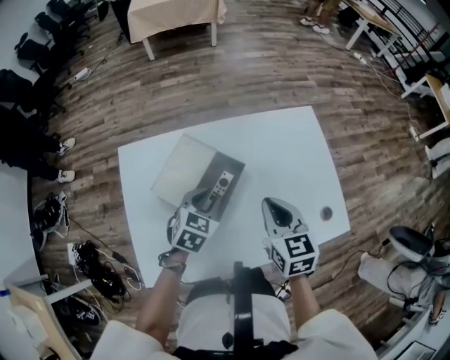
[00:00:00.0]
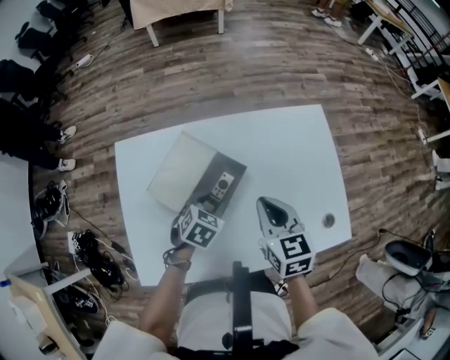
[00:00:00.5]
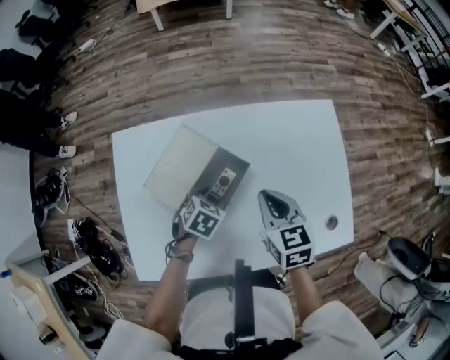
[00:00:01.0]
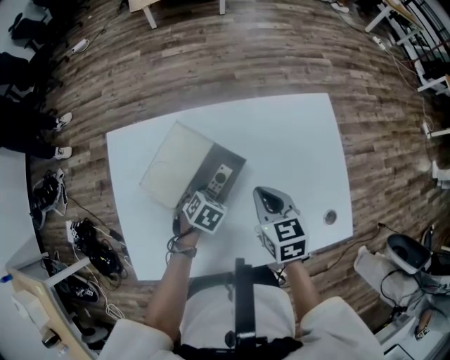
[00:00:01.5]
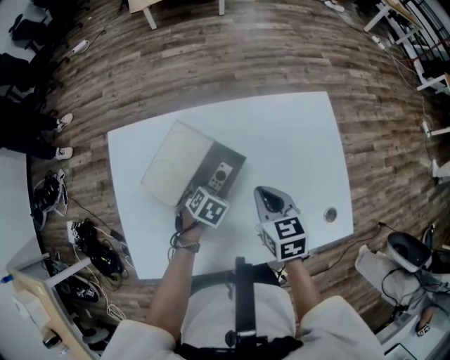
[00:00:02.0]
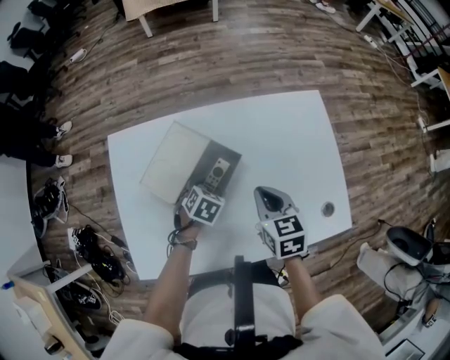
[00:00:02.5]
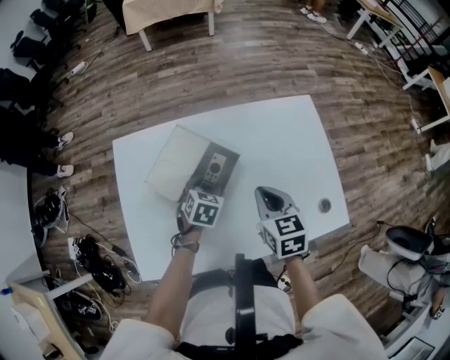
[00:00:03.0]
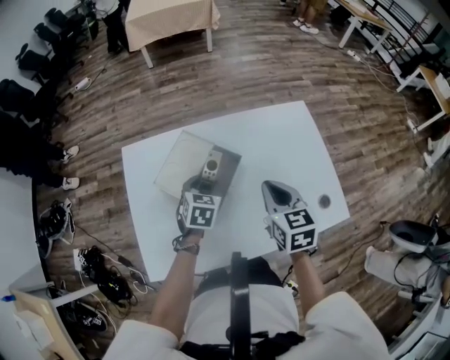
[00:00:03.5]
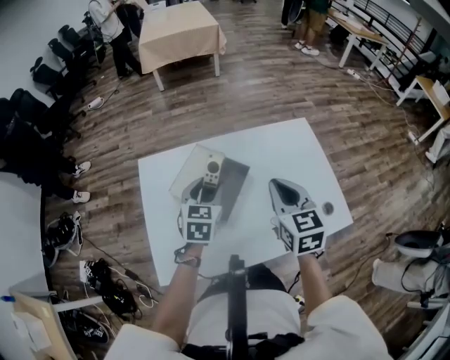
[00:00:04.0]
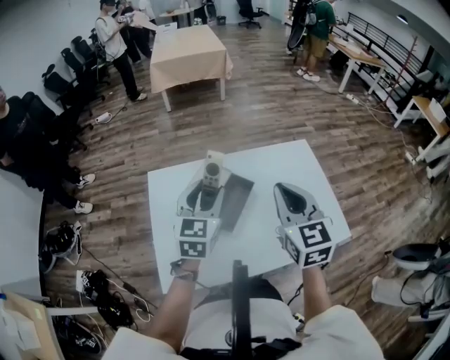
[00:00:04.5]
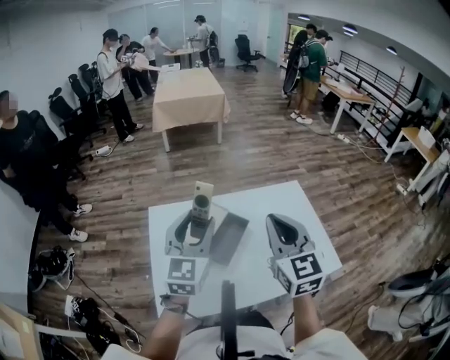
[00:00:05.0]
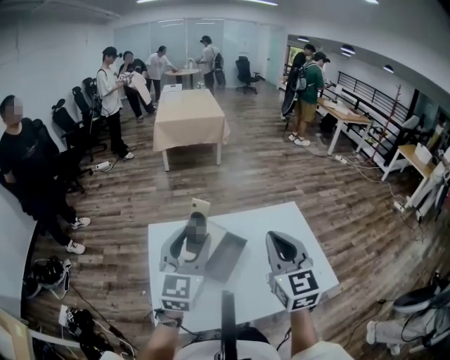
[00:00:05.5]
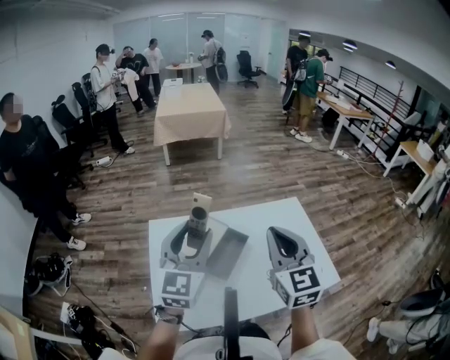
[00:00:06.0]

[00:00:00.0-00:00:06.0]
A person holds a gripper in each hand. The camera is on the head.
00:00:00.0 to 00:00:02.0: The left gripper heads downward, covering approximately 15 cm, swivels roughly 30 degrees, and opens its fingers. The right gripper is displaced downward and forward by roughly 10 cm.
00:00:02.0 to 00:00:04.0: The grippers both shift upward by roughly 20 cm. The left gripper points its fingers some 40 degrees further upward. The right gripper swivels some 20 degrees.
00:00:04.0 to 00:00:06.0: The left gripper heads upward, covering about 25 cm, and points its fingers approximately 30 degrees further upward, while the right gripper travels upward by about 15 cm, and turns by roughly 20 degrees.

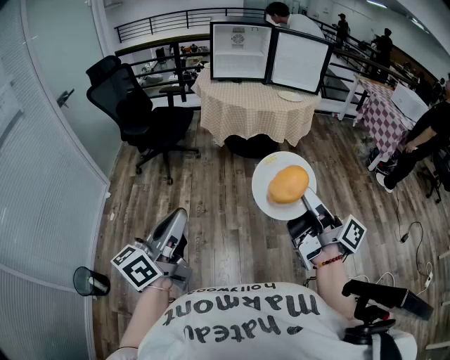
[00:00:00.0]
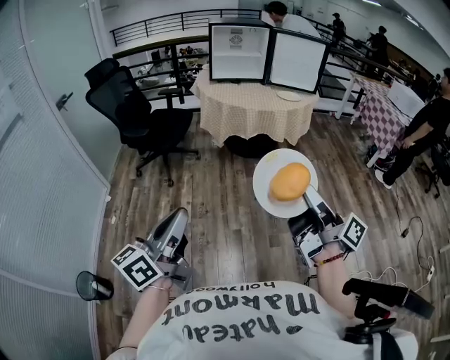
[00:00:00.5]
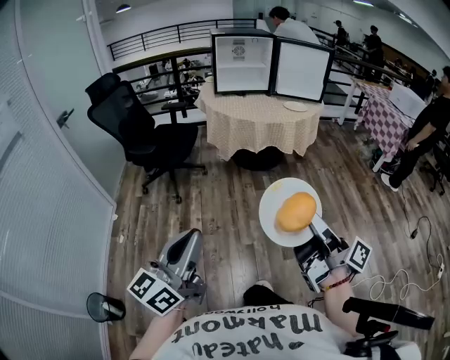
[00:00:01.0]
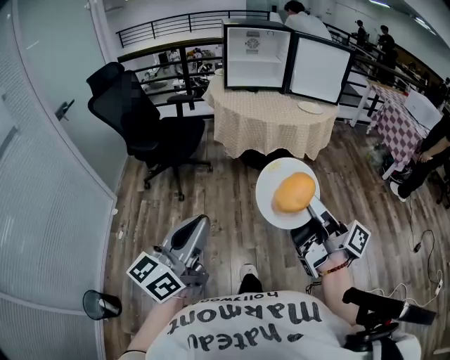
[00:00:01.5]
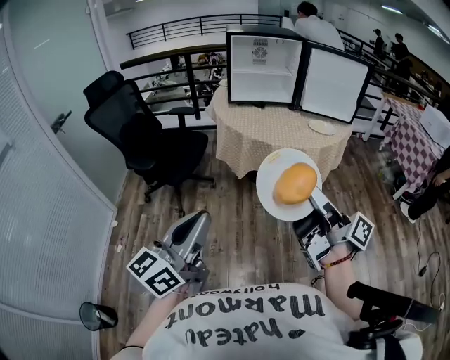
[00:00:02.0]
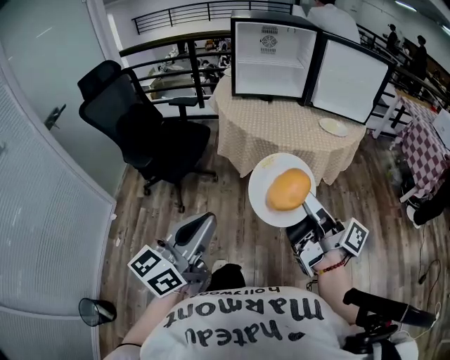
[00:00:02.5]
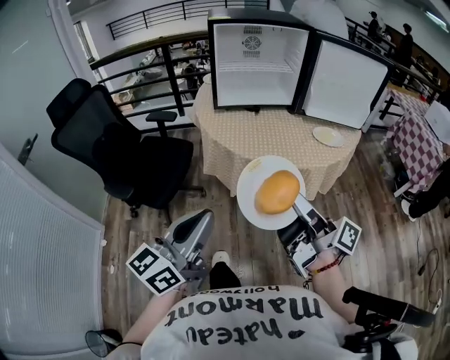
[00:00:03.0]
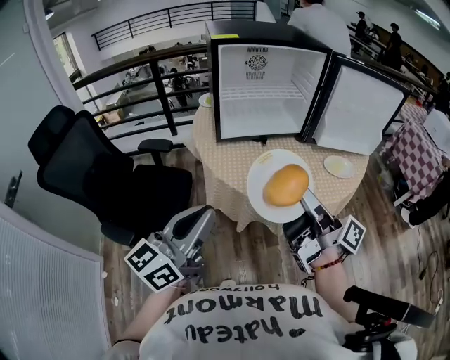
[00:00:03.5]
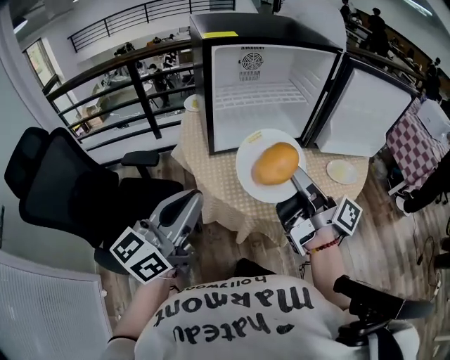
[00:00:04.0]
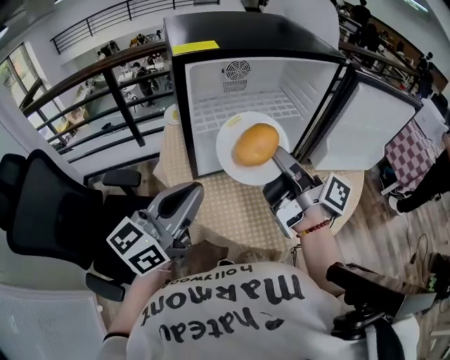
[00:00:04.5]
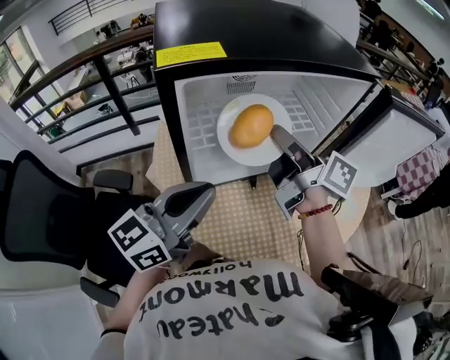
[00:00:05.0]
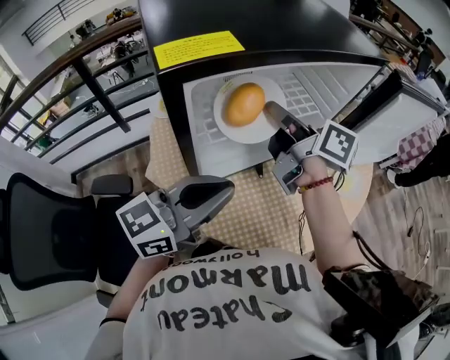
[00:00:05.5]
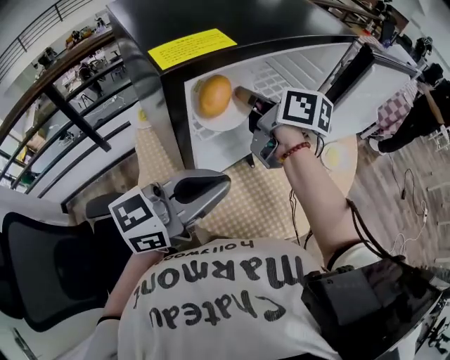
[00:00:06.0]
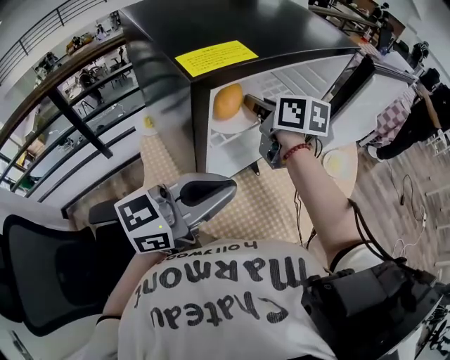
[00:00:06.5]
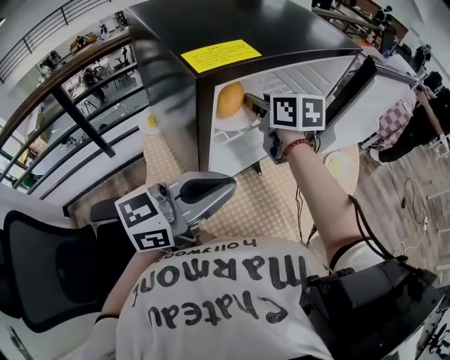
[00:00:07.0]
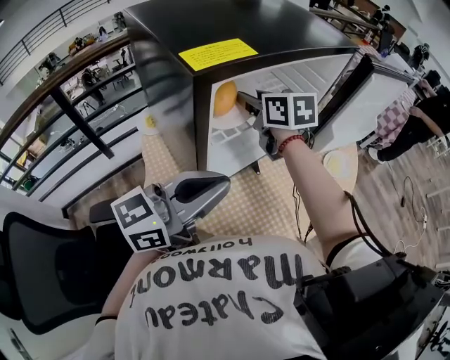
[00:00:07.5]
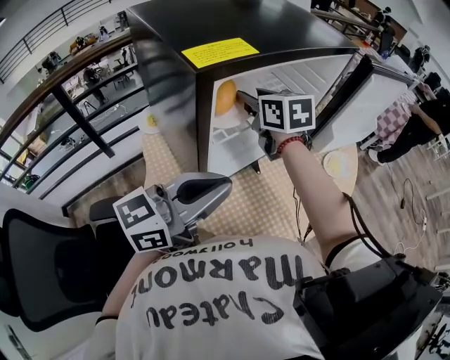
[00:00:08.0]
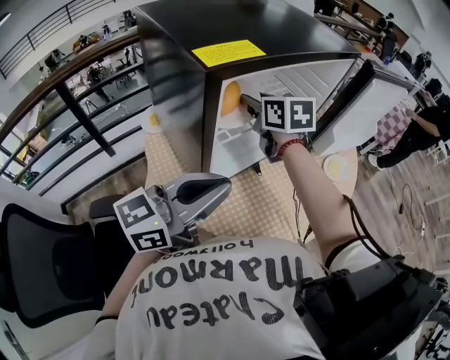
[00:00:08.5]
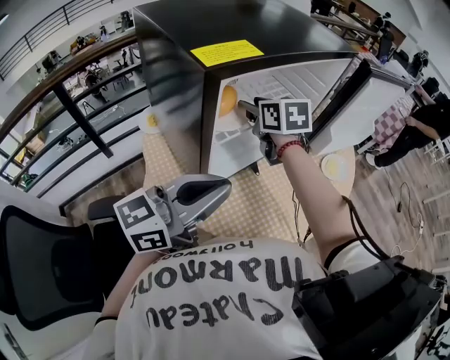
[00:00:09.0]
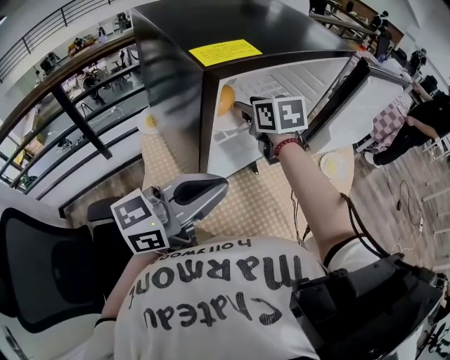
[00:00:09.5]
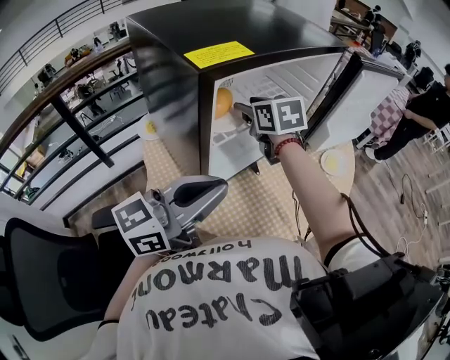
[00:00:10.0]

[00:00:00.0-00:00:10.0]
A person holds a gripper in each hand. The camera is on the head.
00:00:00.0 to 00:00:02.0: Both grippers move forward, approximately 30 cm.
00:00:02.0 to 00:00:04.0: Both grippers are carried forward, some 50 cm.
00:00:04.0 to 00:00:06.0: The right gripper ends up approximately 35 cm from where it was, and angles its fingers downward, by about 30 degrees. Meanwhile the left gripper moves about 25 cm, and swivels some 40 degrees.
00:00:06.0 to 00:00:08.0: The right gripper swivels roughly 40 degrees.
00:00:08.0 to 00:00:10.0: The right gripper opens up.

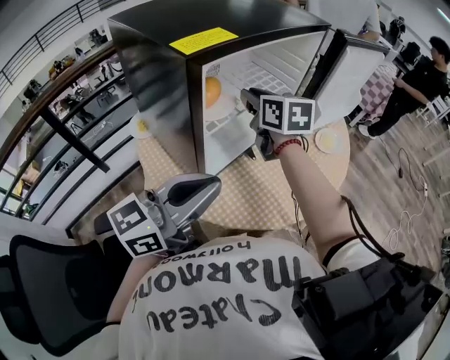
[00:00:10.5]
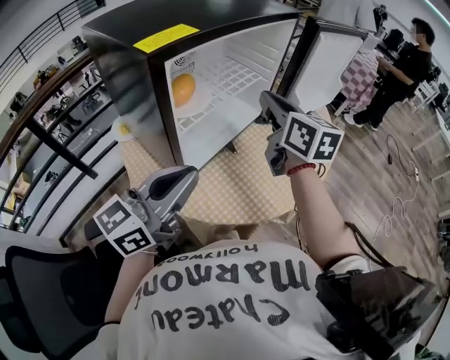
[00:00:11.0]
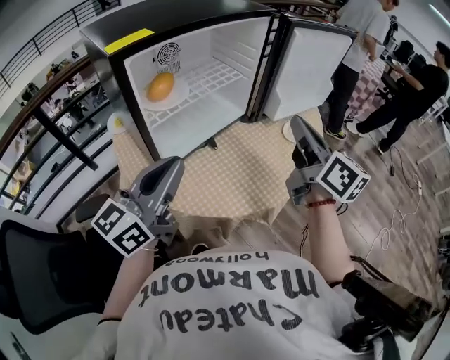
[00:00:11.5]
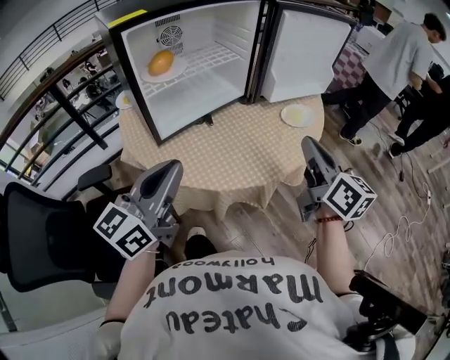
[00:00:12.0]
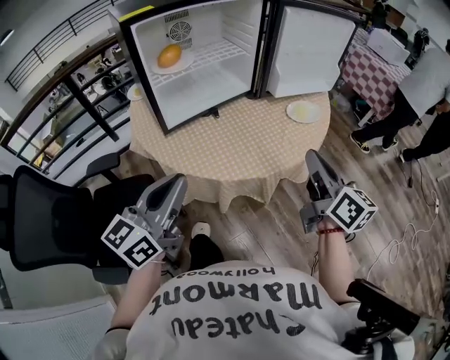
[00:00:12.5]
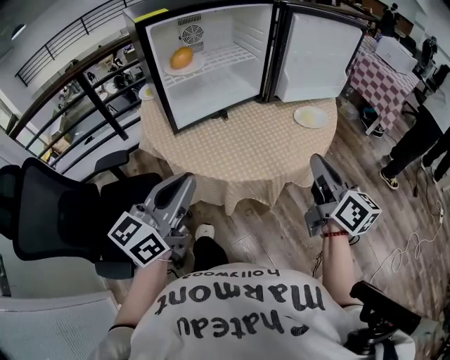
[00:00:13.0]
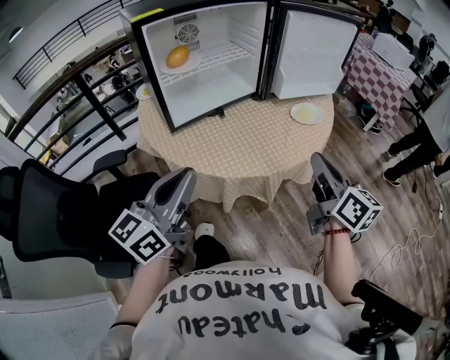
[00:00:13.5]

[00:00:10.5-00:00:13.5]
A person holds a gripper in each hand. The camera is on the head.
00:00:10.5 to 00:00:12.0: The left gripper goes some 15 cm to the right and backward, and swivels approximately 30 degrees. The right gripper shifts some 40 cm to the right and backward, and changes its angle by approximately 20 degrees.
00:00:12.0 to 00:00:13.5: The grippers both shift backward by some 5 cm.

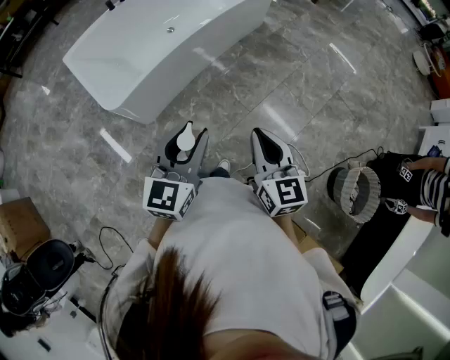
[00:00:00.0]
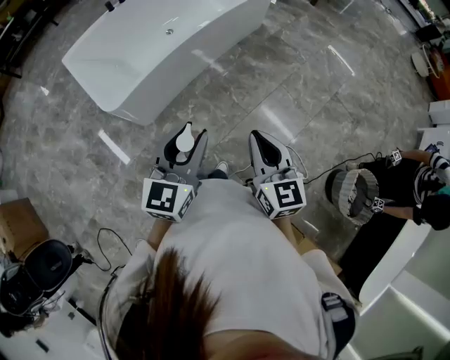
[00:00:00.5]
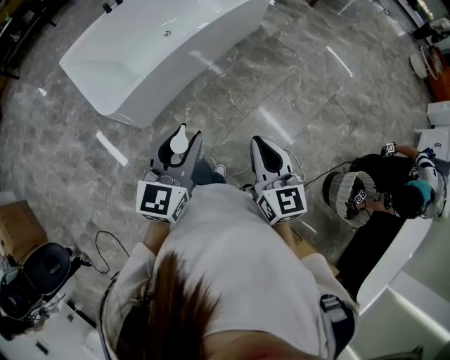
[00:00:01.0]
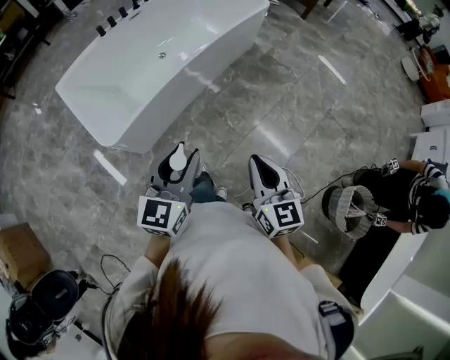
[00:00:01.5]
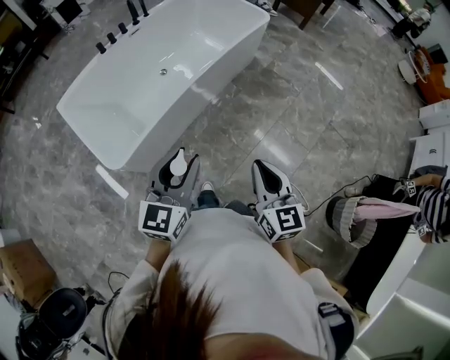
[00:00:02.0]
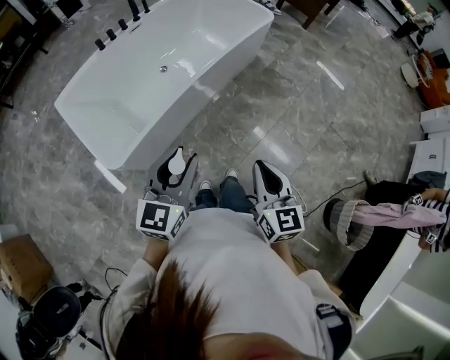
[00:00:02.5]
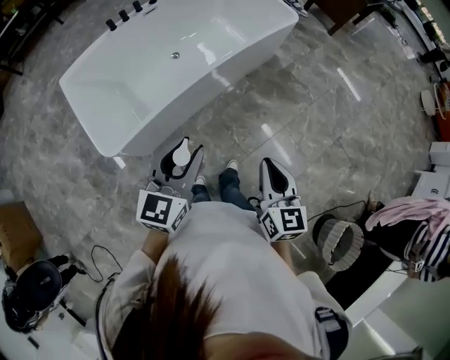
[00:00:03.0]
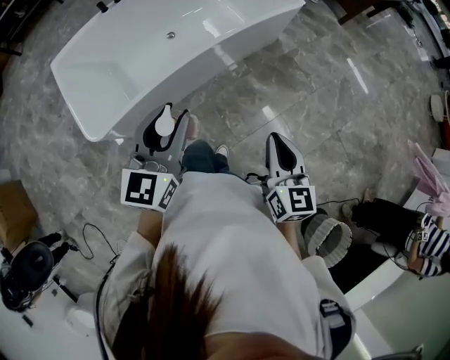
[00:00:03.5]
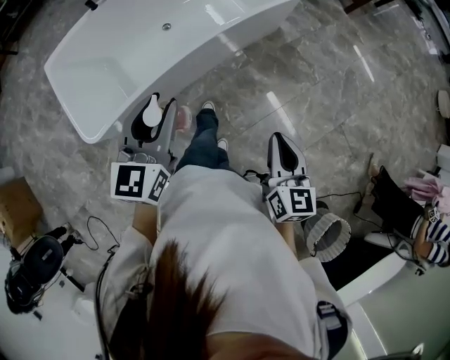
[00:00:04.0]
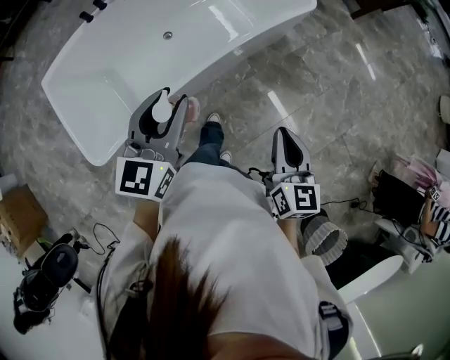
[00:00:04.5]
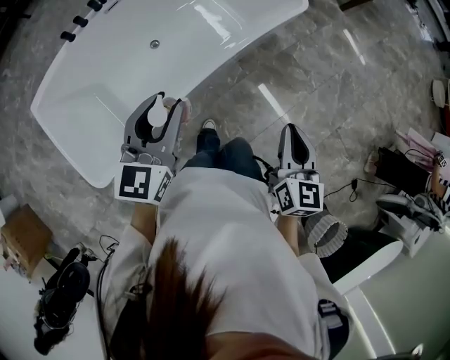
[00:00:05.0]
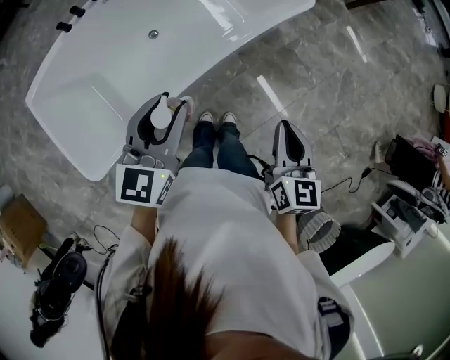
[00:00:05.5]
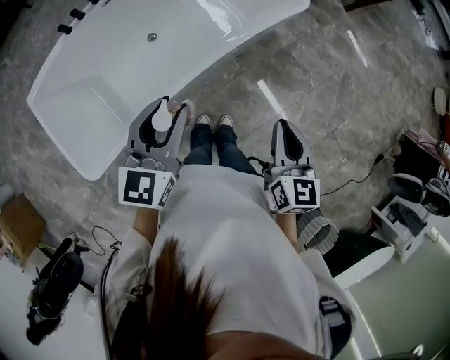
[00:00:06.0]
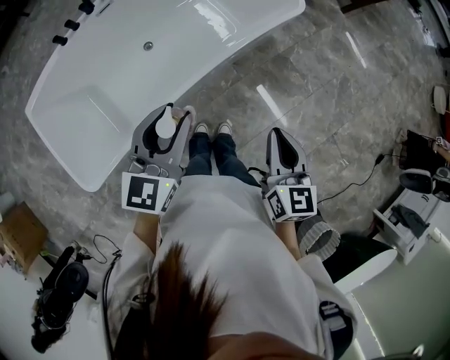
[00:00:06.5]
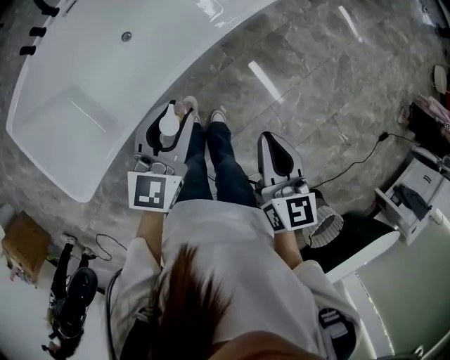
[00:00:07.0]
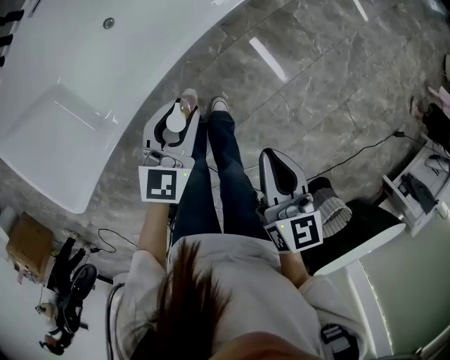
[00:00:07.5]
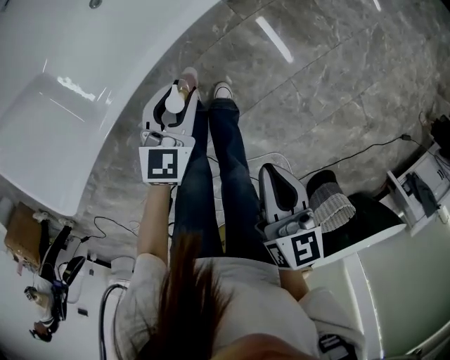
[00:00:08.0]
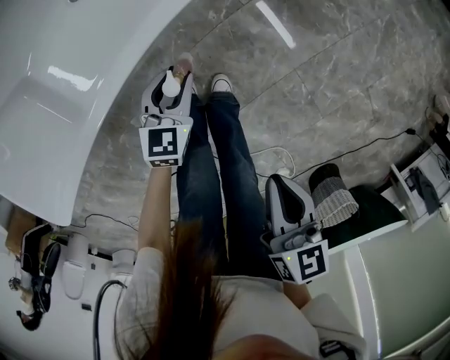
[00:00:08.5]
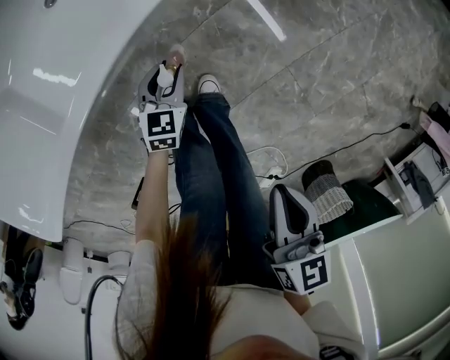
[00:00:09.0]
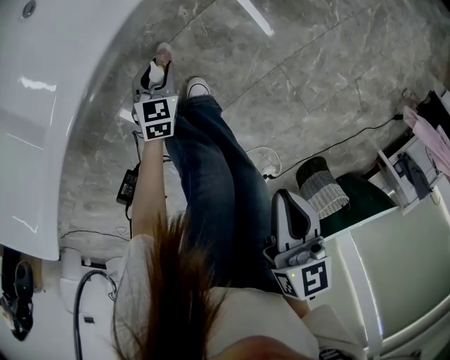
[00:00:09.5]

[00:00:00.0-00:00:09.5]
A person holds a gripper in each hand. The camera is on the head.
00:00:00.0 to 00:00:02.0: The right gripper heads forward, covering some 15 cm, while the left gripper heads forward and to the left, covering roughly 20 cm.
00:00:02.0 to 00:00:04.0: The left gripper travels forward by some 25 cm. Meanwhile the right gripper goes roughly 30 cm forward and to the right.
00:00:04.0 to 00:00:05.5: Both grippers travel together forward, roughly 25 cm.
00:00:05.5 to 00:00:07.5: The left gripper travels downward by approximately 30 cm. The right gripper travels downward by some 20 cm.
00:00:07.5 to 00:00:09.5: The right gripper is displaced downward by about 20 cm; the left gripper moves downward, about 50 cm, and swivels about 20 degrees.
